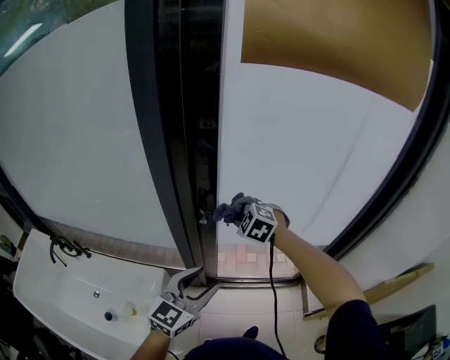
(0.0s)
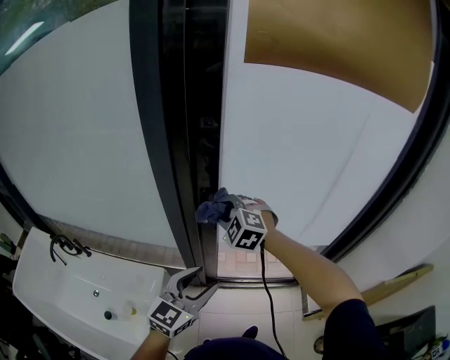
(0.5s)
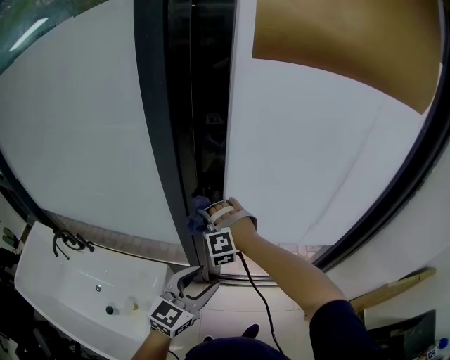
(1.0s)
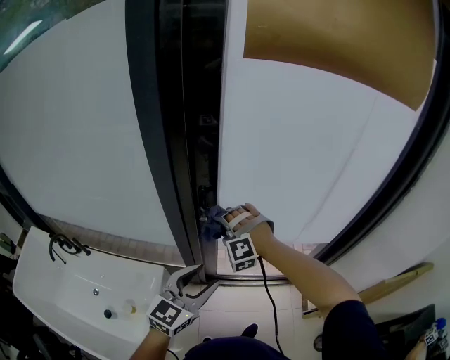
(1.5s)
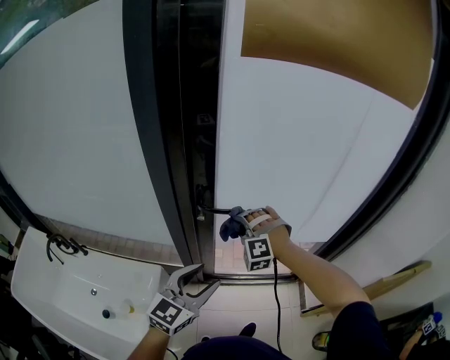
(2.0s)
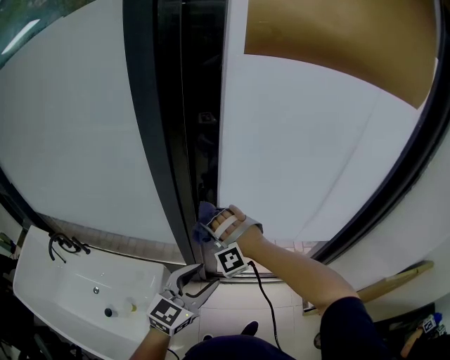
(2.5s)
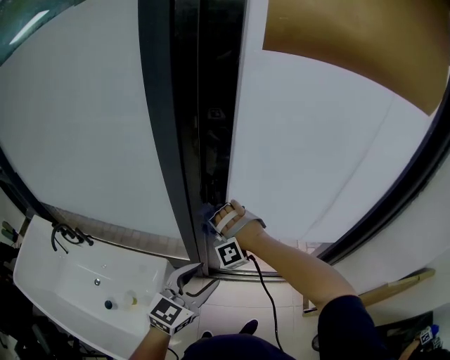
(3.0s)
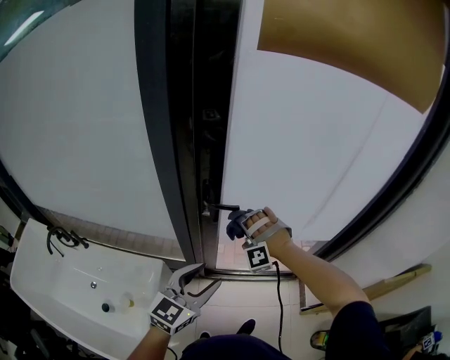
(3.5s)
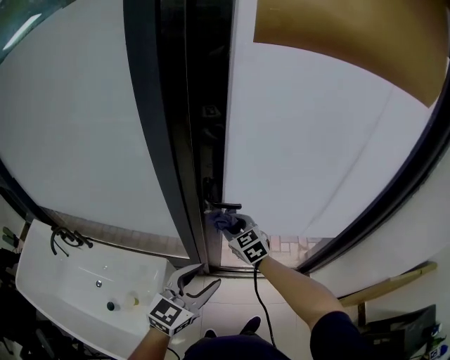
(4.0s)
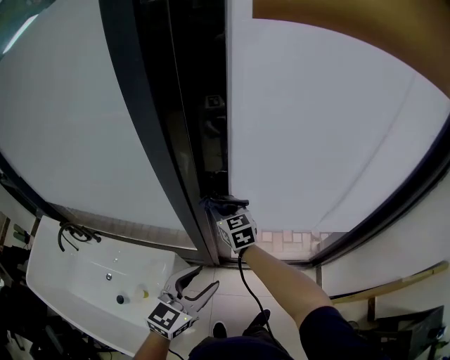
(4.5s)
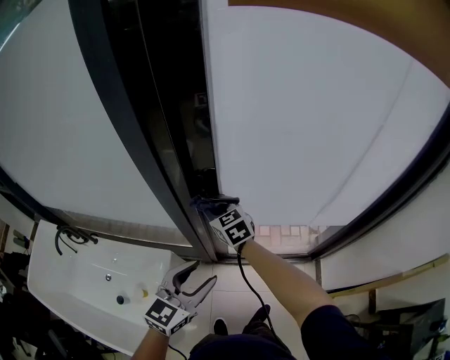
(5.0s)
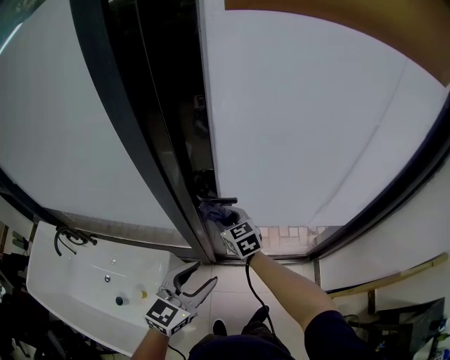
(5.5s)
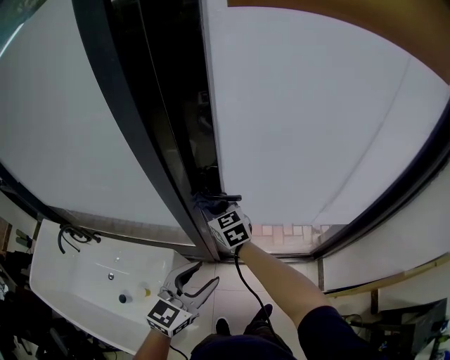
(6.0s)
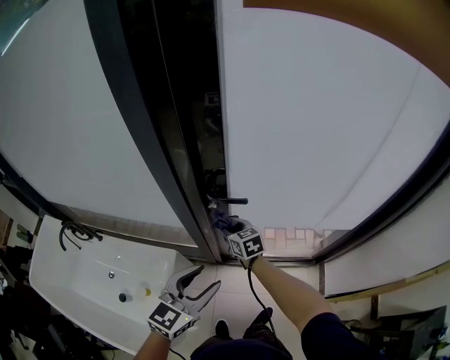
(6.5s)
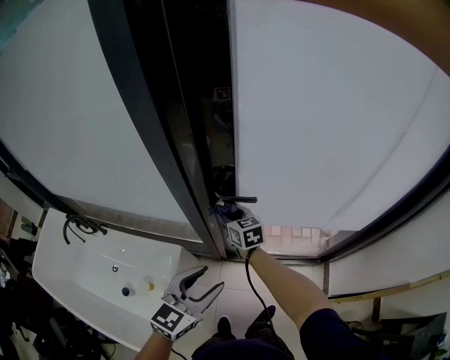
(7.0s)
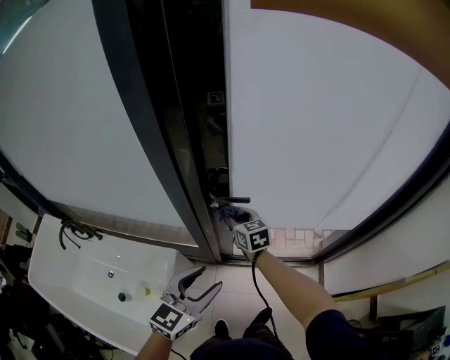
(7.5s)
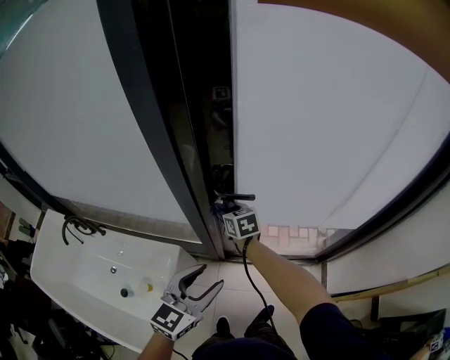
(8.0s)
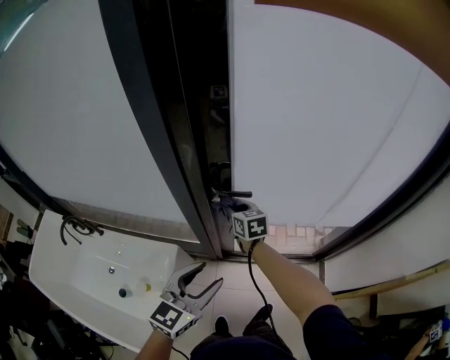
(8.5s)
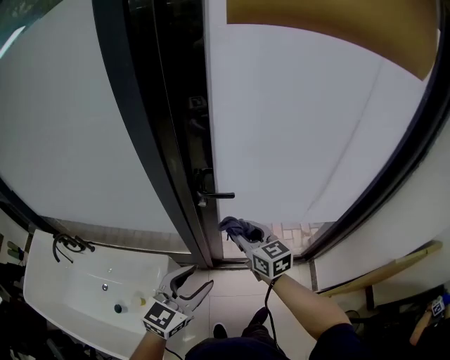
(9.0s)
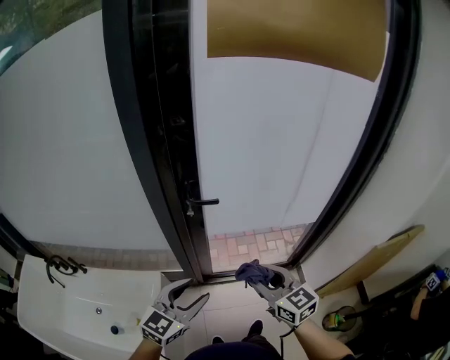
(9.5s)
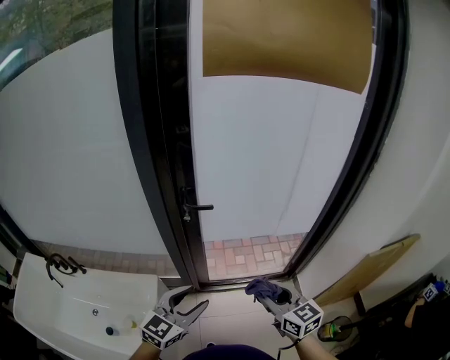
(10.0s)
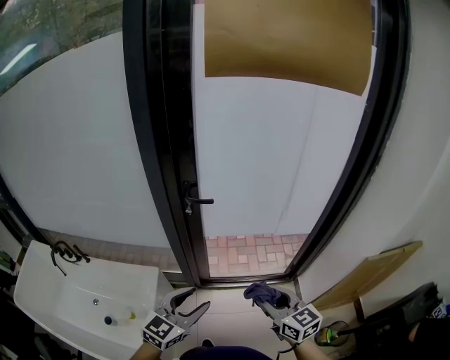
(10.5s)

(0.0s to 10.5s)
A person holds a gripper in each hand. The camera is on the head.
0.0s - 2.0s: The right gripper goes approximately 5 cm downward, moves roughly 10 cm to the left and comes back, and swivels about 40 degrees.
2.0s - 4.0s: The right gripper goes left and right, roughly 10 cm each way, reversing 2 times, and rotates around the line of its fingers by some 70 degrees, clockwise from behind.
4.0s - 6.5s: The right gripper shifts some 10 cm downward, and changes its angle by some 20 degrees.
6.5s - 8.5s: The right gripper heads upward, covering approximately 5 cm.
8.5s - 10.5s: The left gripper moves backward, about 15 cm. Meanwhile the right gripper shifts some 50 cm backward and to the right.

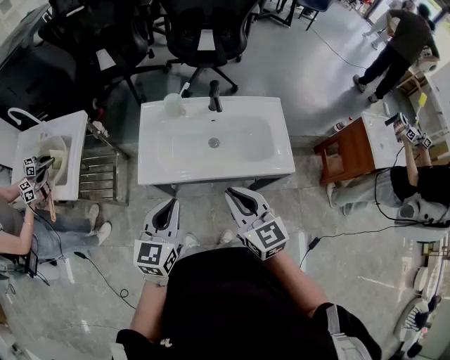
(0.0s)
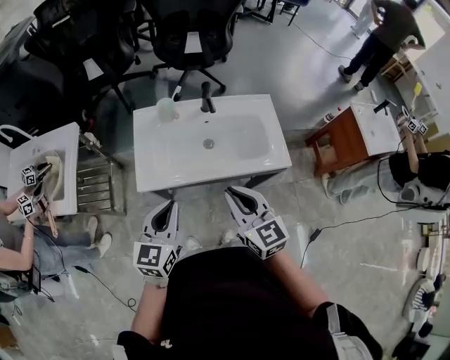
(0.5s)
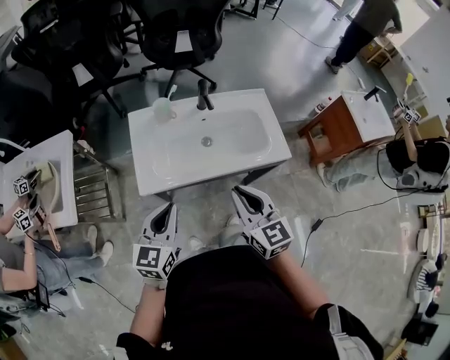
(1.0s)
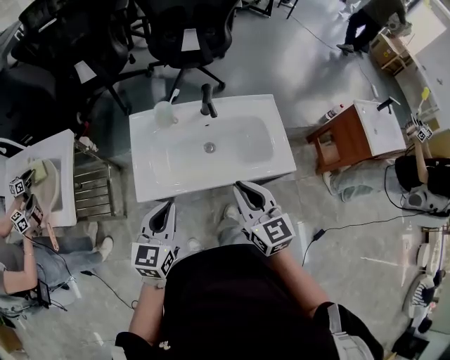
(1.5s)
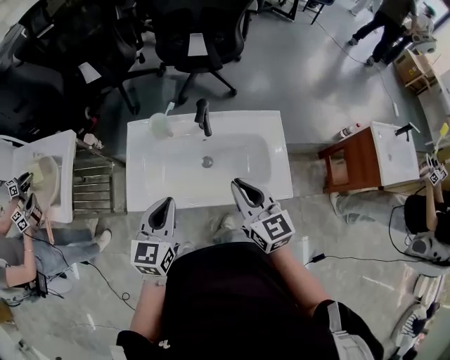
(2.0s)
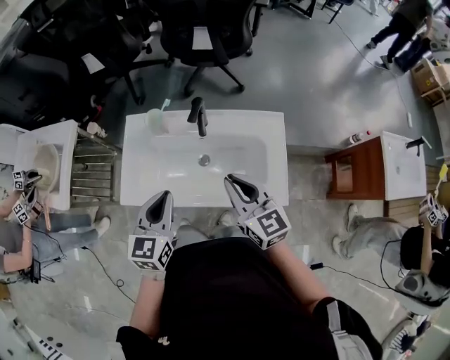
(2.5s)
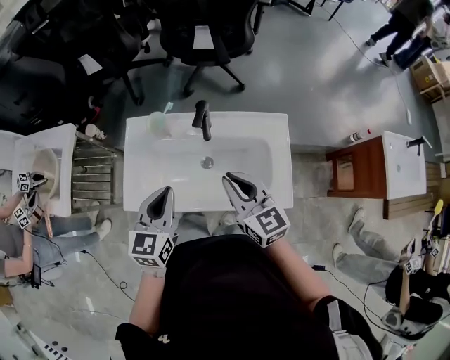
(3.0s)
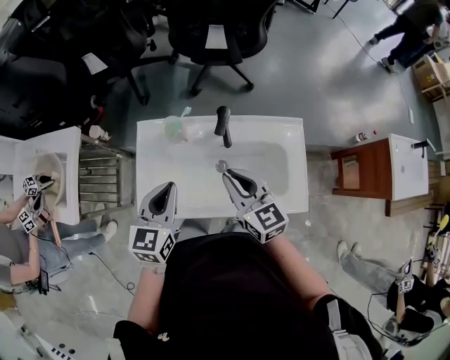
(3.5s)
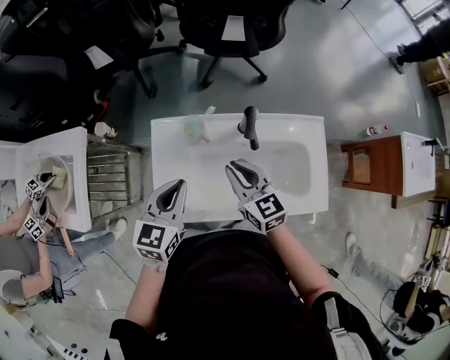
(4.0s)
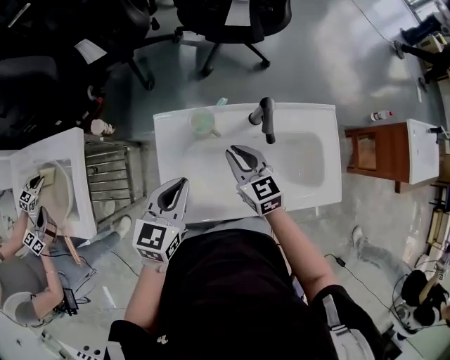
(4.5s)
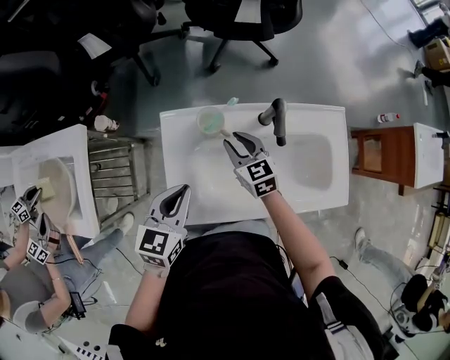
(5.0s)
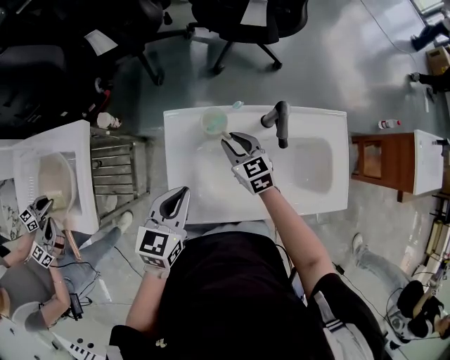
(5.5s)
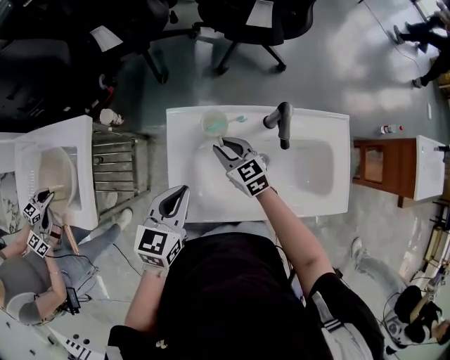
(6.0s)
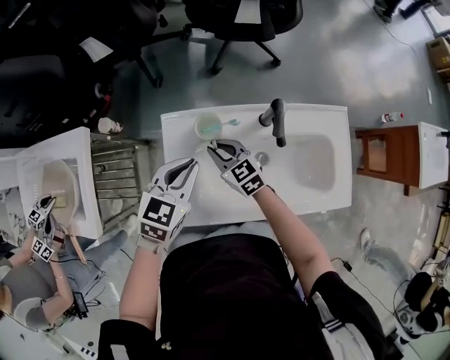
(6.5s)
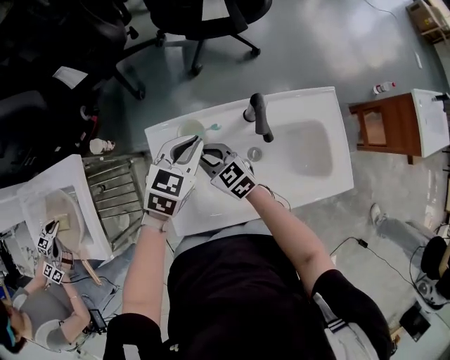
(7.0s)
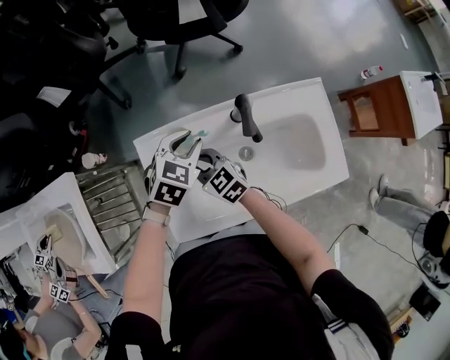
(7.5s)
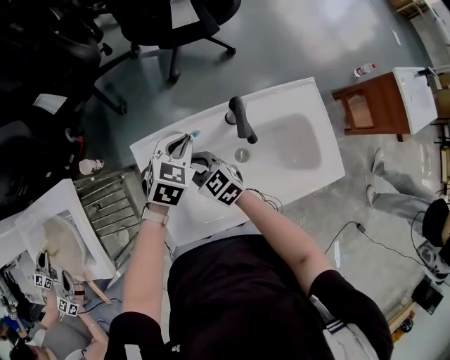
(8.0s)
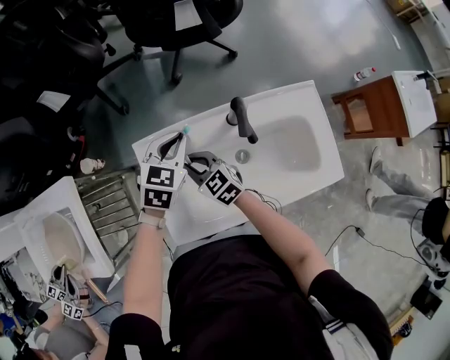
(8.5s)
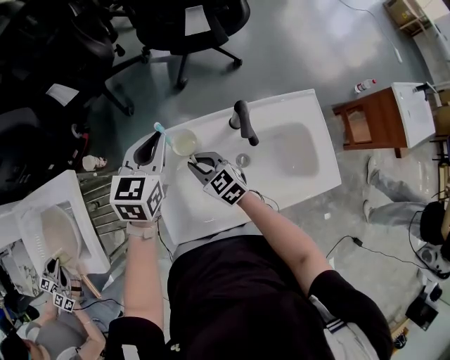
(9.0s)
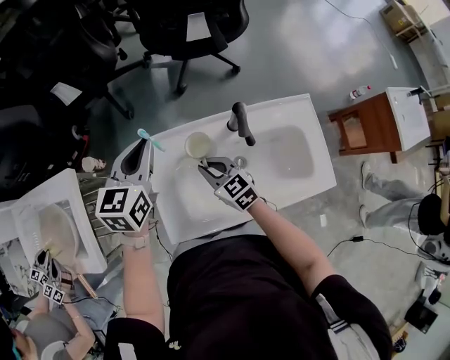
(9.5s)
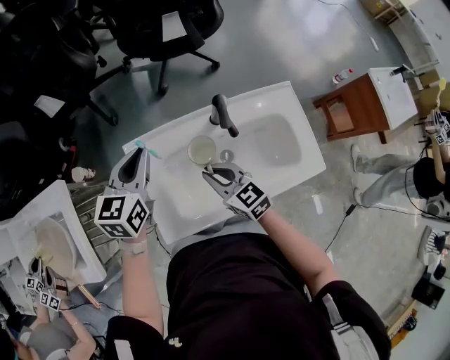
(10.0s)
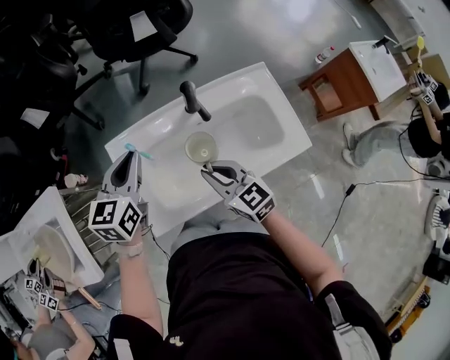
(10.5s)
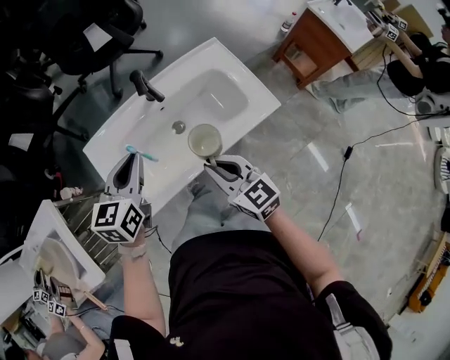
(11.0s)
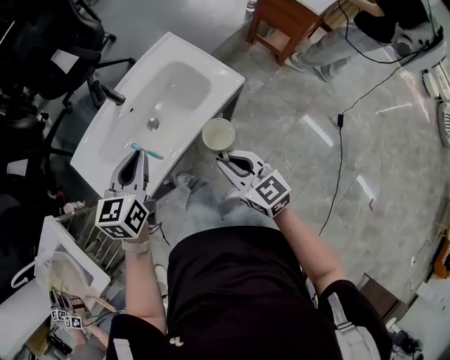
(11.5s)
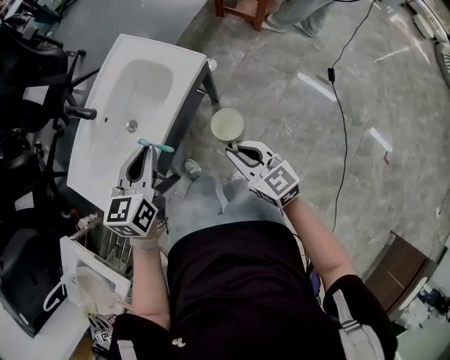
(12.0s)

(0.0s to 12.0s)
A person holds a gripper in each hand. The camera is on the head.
0.0s - 2.0s: The left gripper shifts about 15 cm forward. The right gripper moves forward and to the right, roughly 15 cm.
2.0s - 4.0s: The left gripper is displaced forward and to the left by about 15 cm, while the right gripper travels forward, to the left and downward by roughly 20 cm.
4.0s - 6.0s: The right gripper travels downward, to the left and forward by roughly 20 cm. Meanwhile the left gripper travels to the left and downward by about 10 cm.
6.0s - 8.0s: The left gripper goes roughly 20 cm forward and to the right, and rotates about 40 degrees.
8.0s - 10.0s: The left gripper moves upward and to the left, some 15 cm, and swivels some 30 degrees, while the right gripper is displaced to the right, upward and backward by some 15 cm.
10.0s - 12.0s: The pair of grippers is taken approximately 40 cm. The left gripper turns by roughly 40 degrees; the right gripper turns by about 40 degrees.

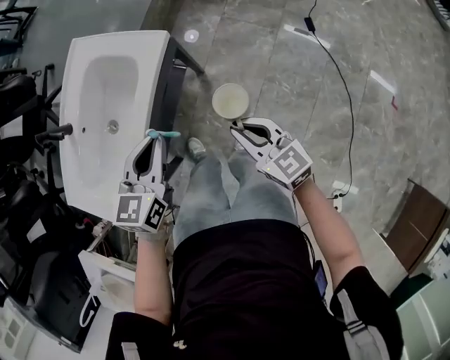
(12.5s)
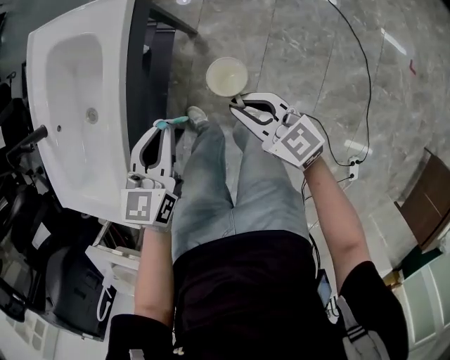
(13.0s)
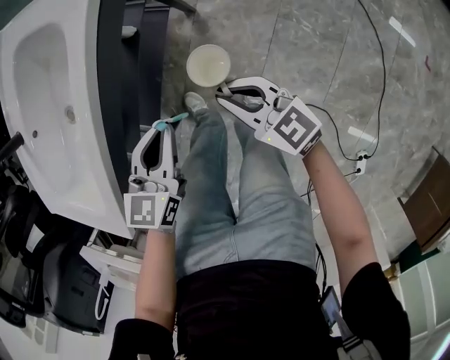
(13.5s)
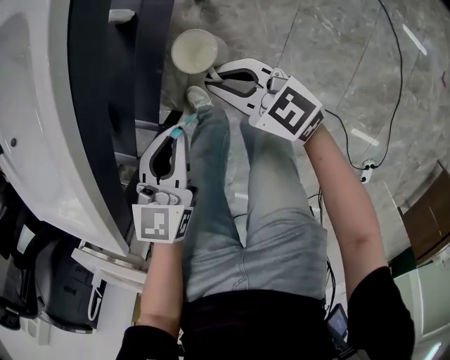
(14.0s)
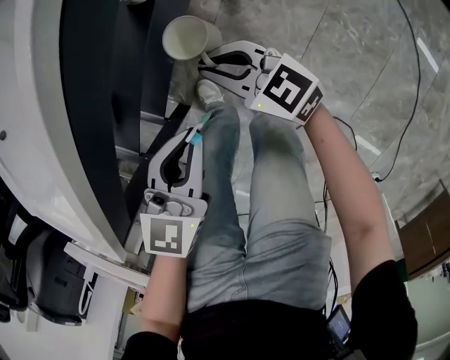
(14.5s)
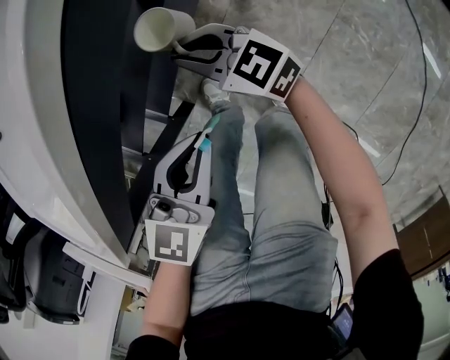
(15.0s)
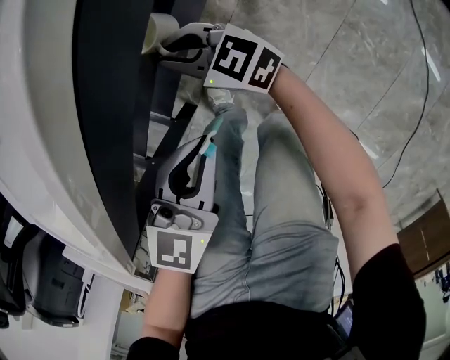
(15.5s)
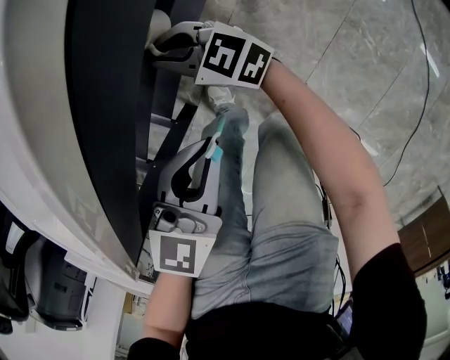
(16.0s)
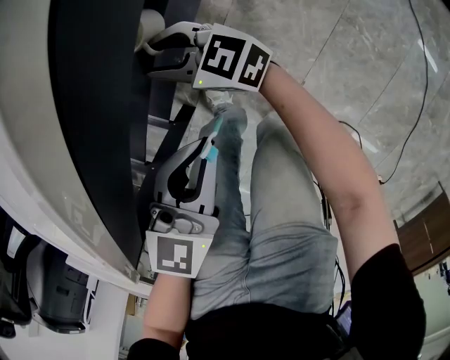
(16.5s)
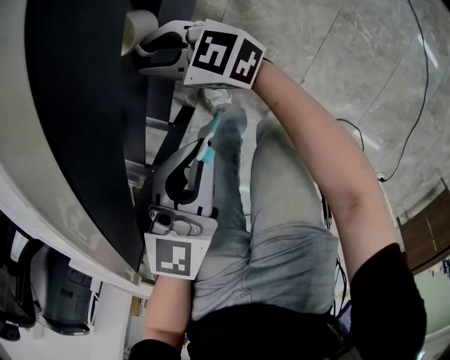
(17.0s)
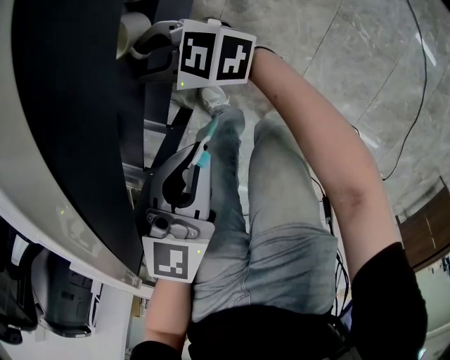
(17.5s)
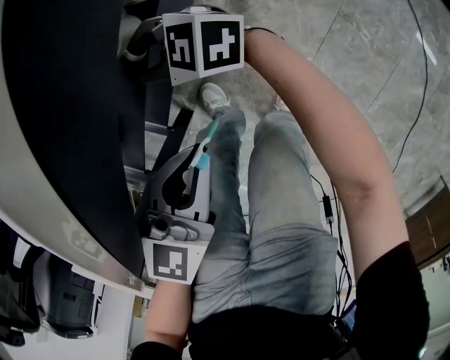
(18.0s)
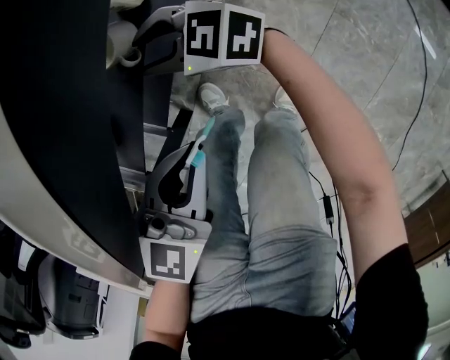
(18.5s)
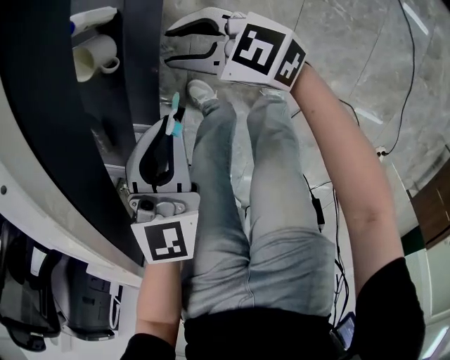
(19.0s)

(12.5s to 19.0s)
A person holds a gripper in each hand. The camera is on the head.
12.5s - 14.5s: The left gripper goes about 30 cm downward. Meanwhile the right gripper moves downward and to the left, about 35 cm, and changes its angle by approximately 20 degrees.
14.5s - 17.0s: The right gripper shifts some 15 cm to the left and forward.
17.0s - 19.0s: The right gripper shifts by some 15 cm. Meanwhile the left gripper shifts by some 5 cm.
